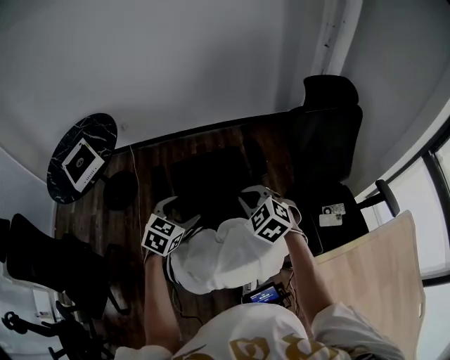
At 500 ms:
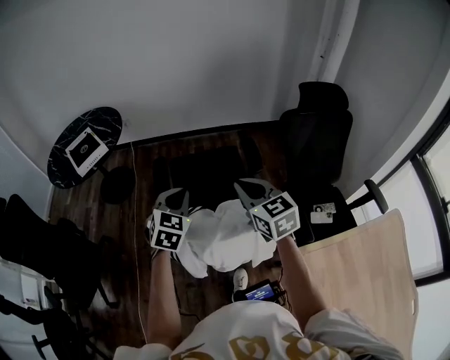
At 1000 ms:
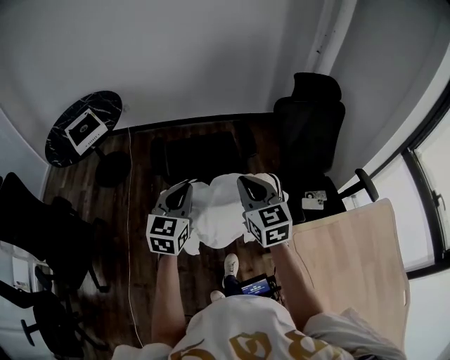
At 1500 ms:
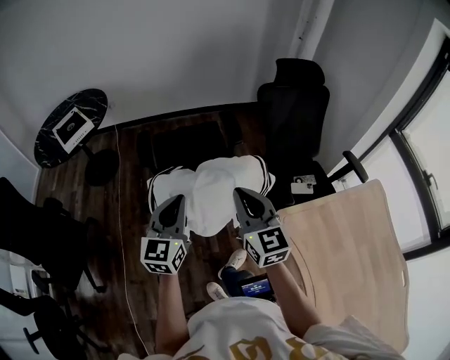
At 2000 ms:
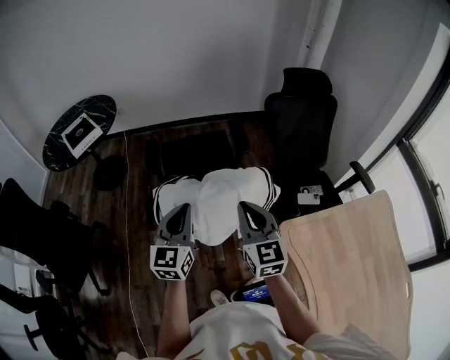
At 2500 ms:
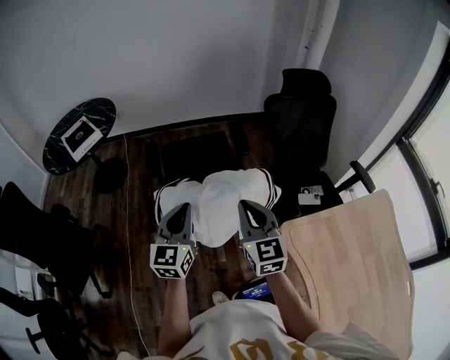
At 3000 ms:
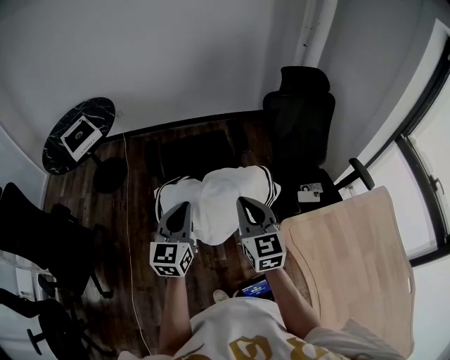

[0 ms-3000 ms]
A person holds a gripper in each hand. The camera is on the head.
0 ms to 1500 ms: The grippers both shift backward by about 25 cm. The right gripper tilts its fingers some 40 degrees upward. The left gripper angles its fingers upward, by approximately 30 degrees, and closes its fingers.
1500 ms to 3000 ms: The grippers make only small movements.

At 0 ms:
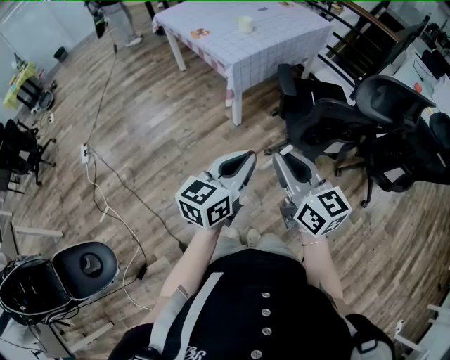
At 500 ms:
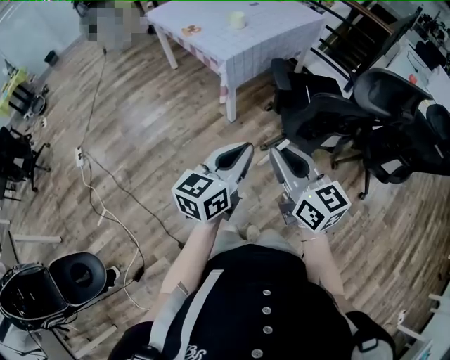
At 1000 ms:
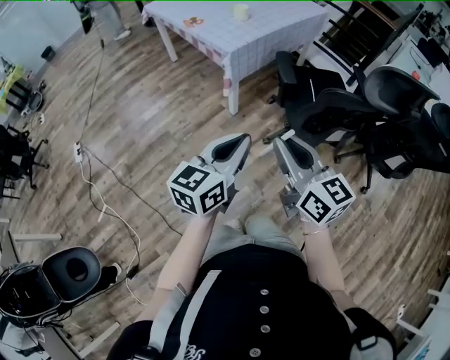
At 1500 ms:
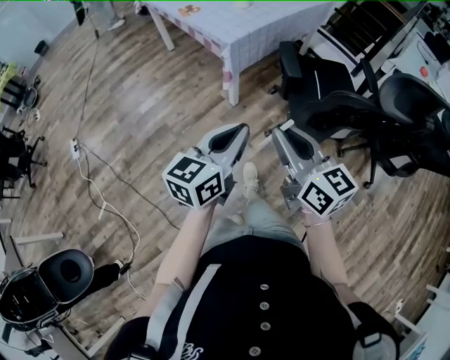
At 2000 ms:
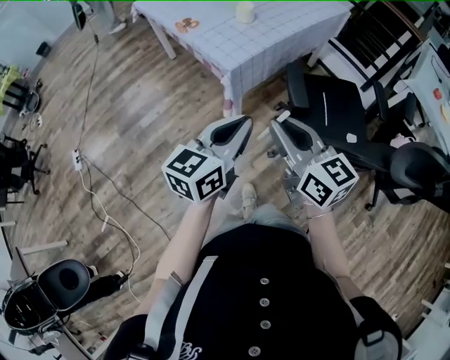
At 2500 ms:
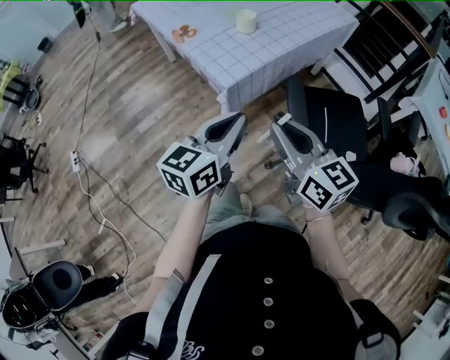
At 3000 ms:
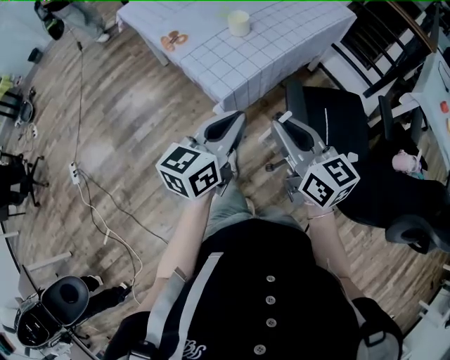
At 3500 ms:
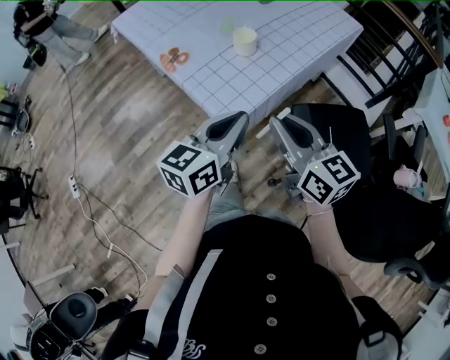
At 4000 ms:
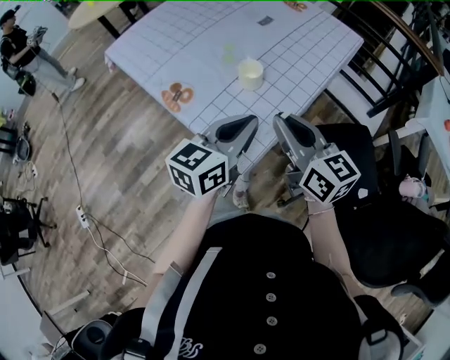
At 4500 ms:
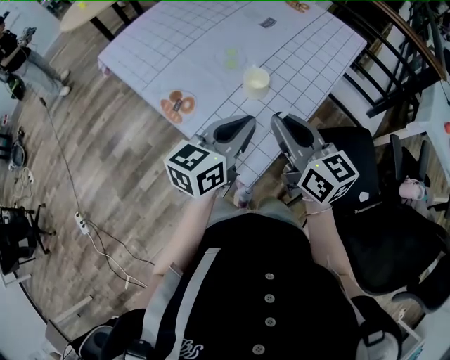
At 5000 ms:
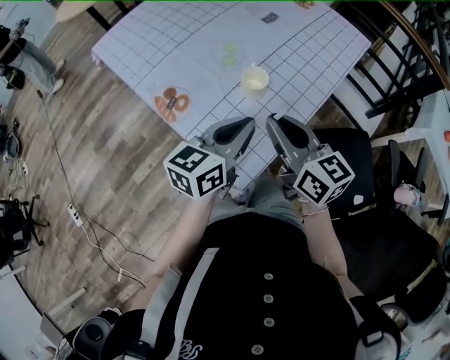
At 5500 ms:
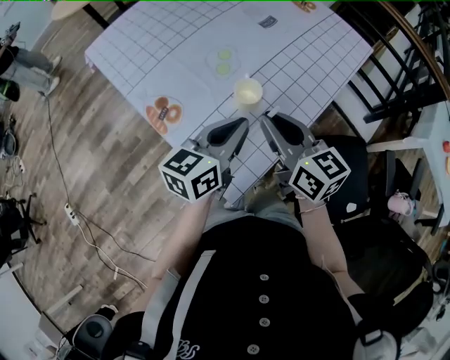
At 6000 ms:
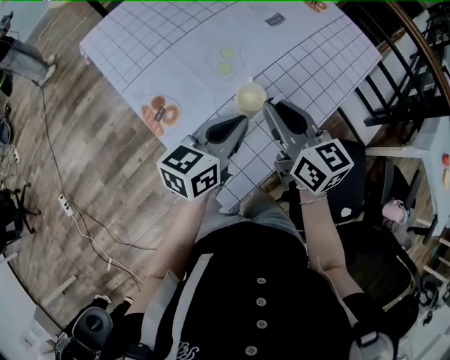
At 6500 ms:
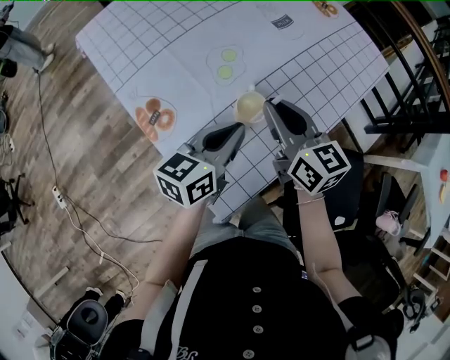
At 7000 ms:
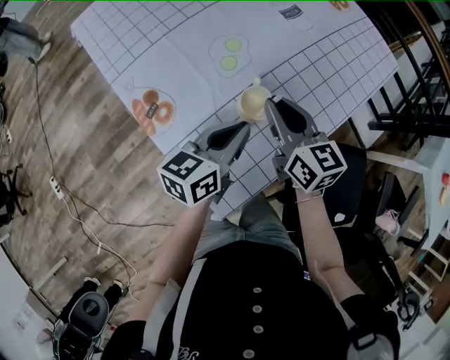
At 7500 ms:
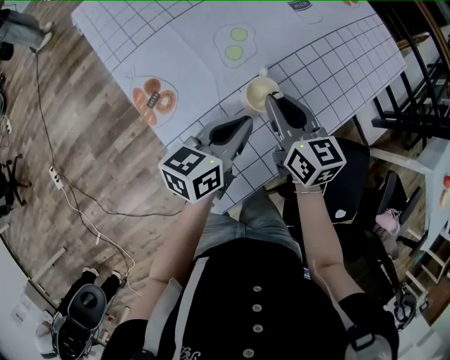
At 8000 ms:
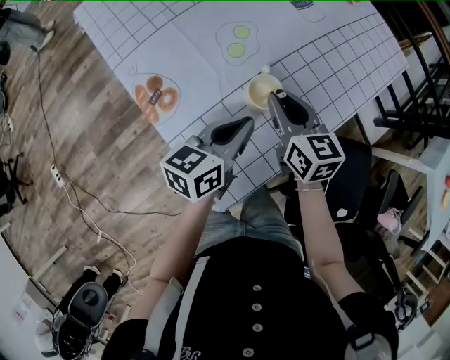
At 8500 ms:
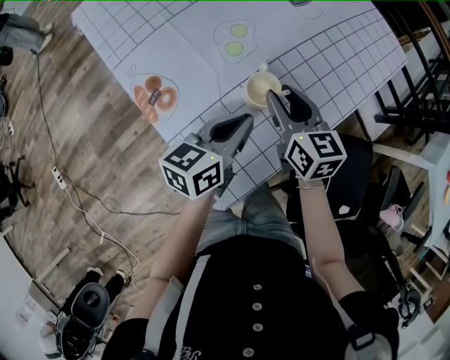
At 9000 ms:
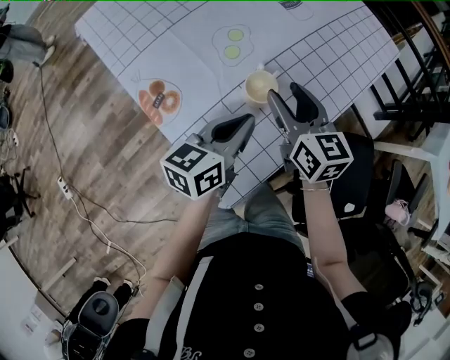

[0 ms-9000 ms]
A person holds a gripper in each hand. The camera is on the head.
0 ms to 2000 ms: The two grippers go approximately 25 cm forward.
2000 ms to 4500 ms: The pair of grippers is taken forward, some 50 cm.
4500 ms to 7000 ms: Both grippers move forward and downward, approximately 20 cm.
7000 ms to 9000 ms: The right gripper opens up.

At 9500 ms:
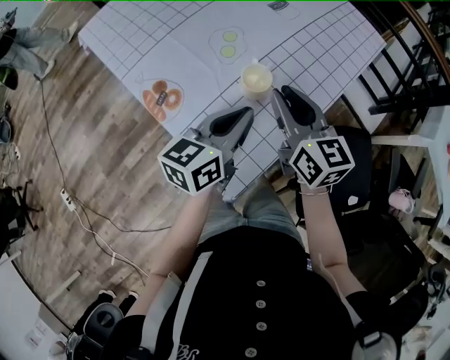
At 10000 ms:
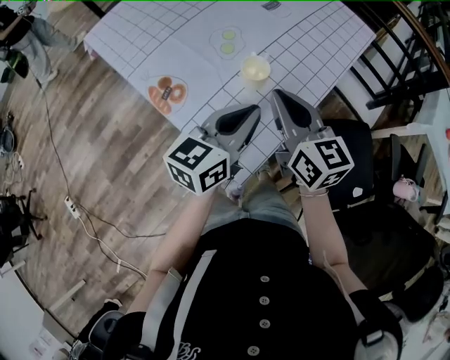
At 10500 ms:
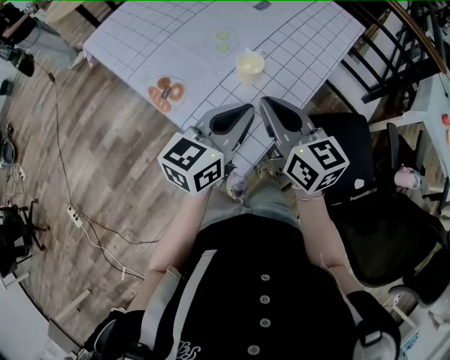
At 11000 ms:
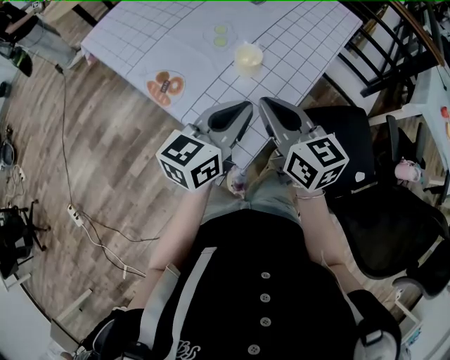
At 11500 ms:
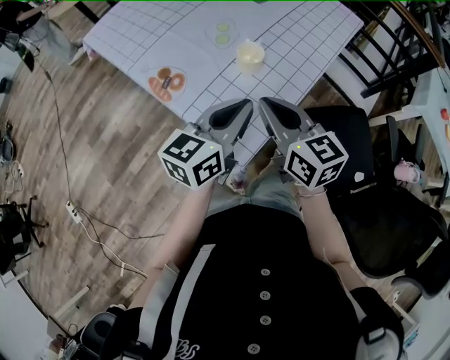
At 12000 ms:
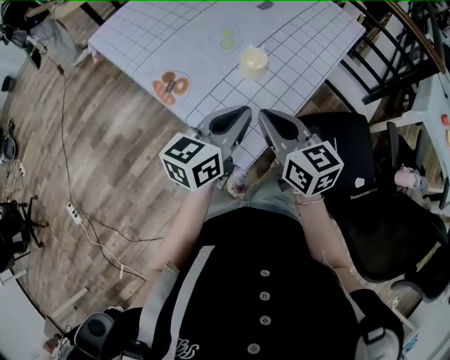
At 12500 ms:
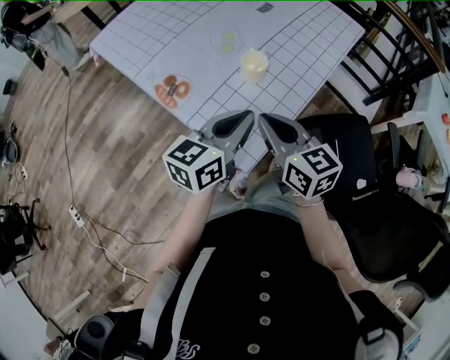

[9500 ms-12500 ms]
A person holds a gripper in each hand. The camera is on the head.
9500 ms to 11000 ms: Both grippers move backward, about 10 cm. The right gripper closes its fingers.
11000 ms to 12500 ms: The grippers move only a little.

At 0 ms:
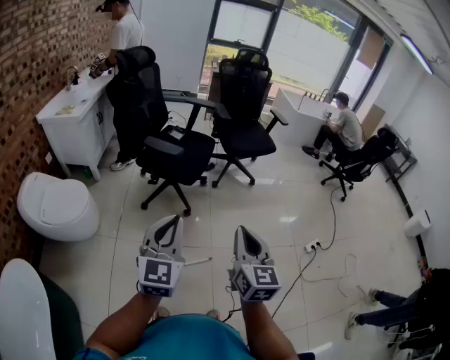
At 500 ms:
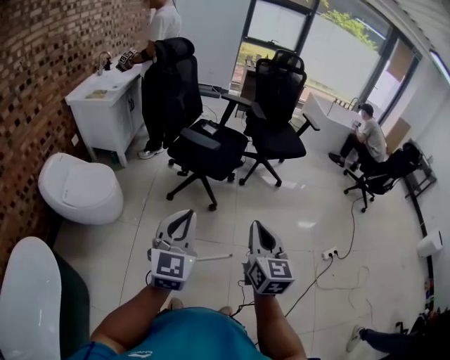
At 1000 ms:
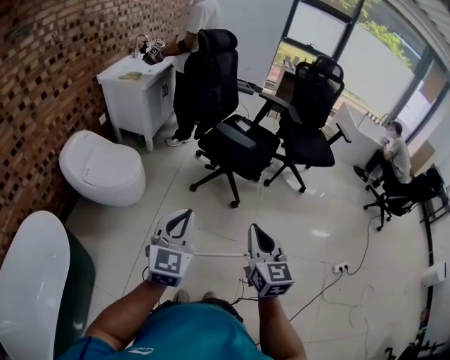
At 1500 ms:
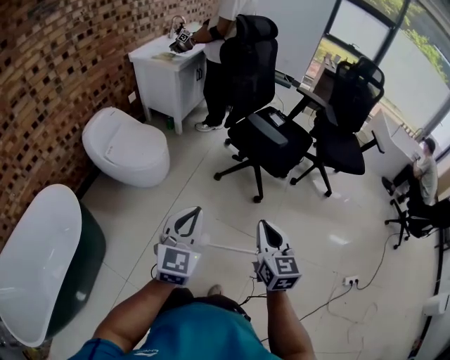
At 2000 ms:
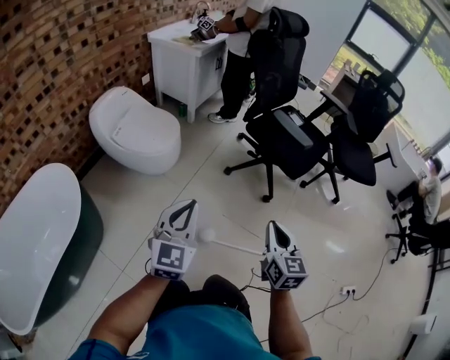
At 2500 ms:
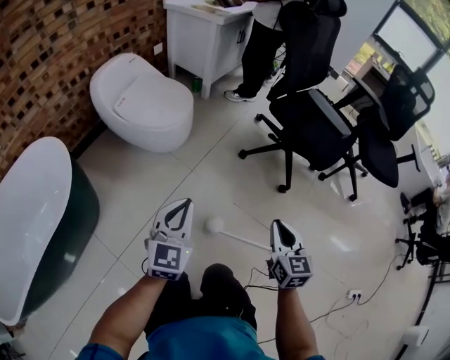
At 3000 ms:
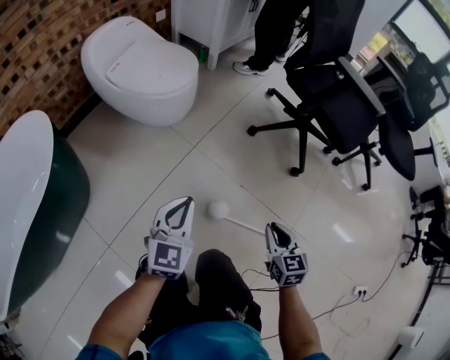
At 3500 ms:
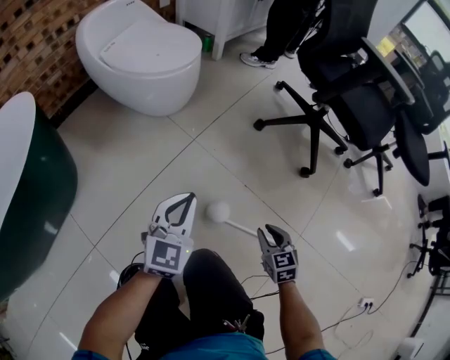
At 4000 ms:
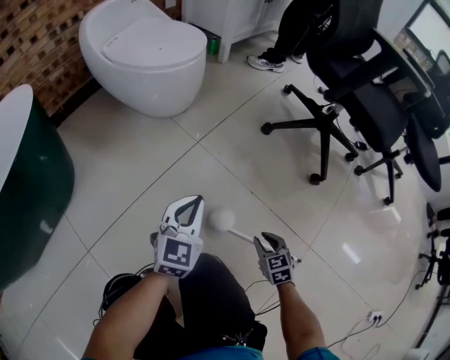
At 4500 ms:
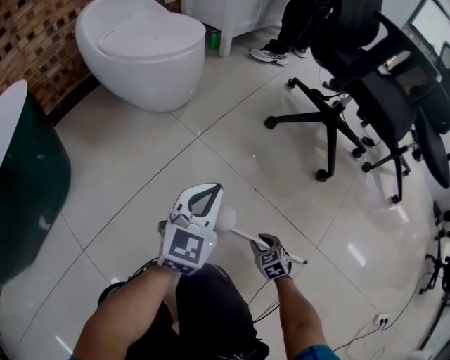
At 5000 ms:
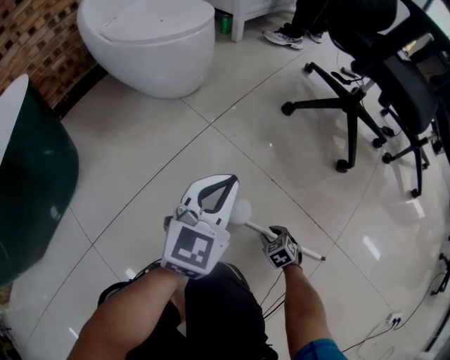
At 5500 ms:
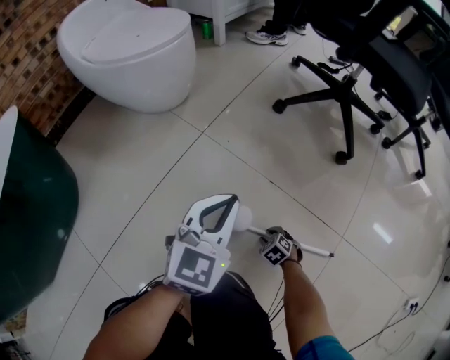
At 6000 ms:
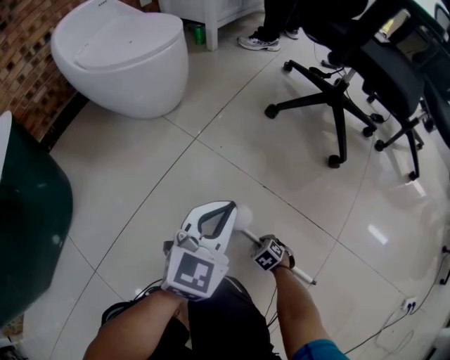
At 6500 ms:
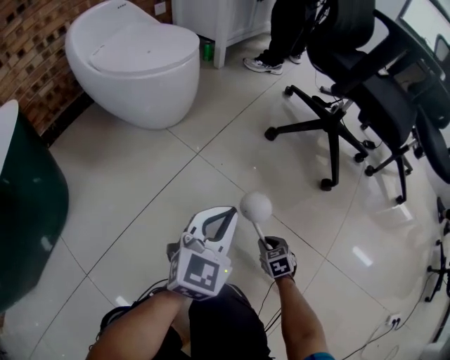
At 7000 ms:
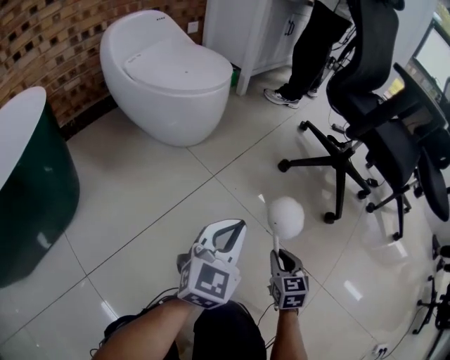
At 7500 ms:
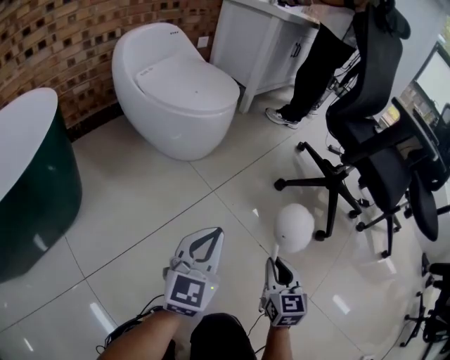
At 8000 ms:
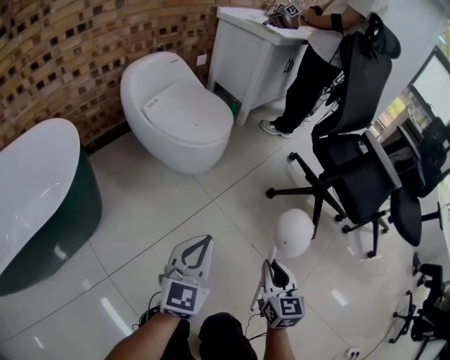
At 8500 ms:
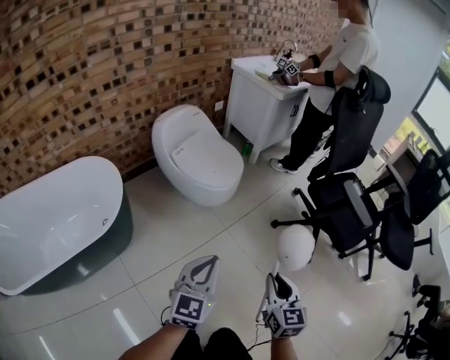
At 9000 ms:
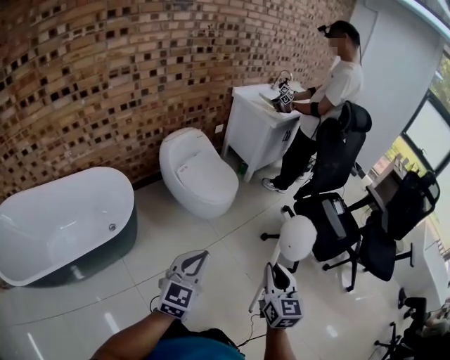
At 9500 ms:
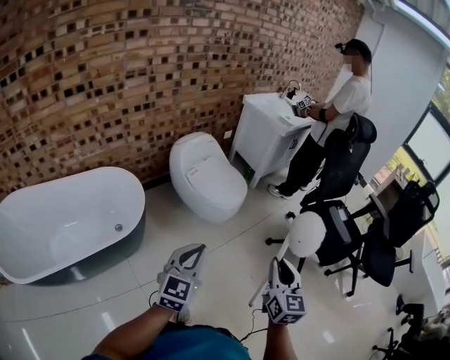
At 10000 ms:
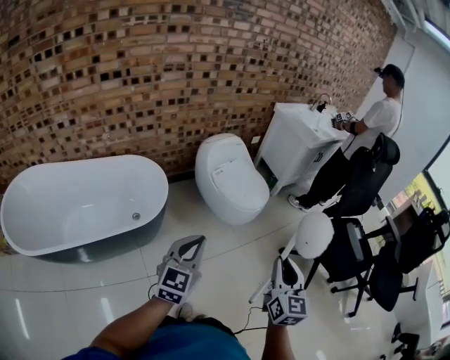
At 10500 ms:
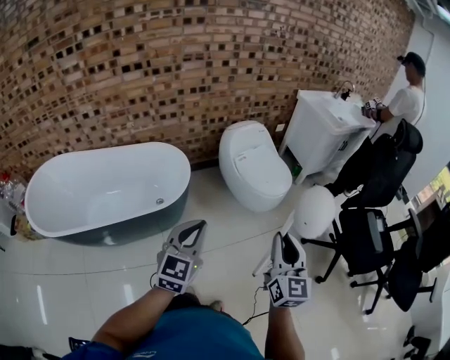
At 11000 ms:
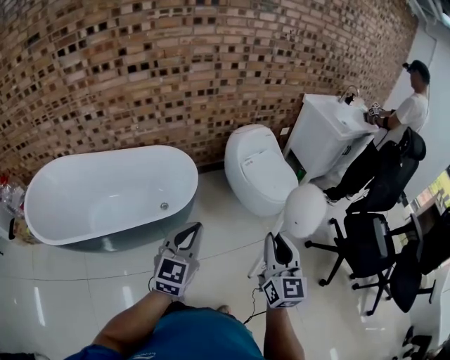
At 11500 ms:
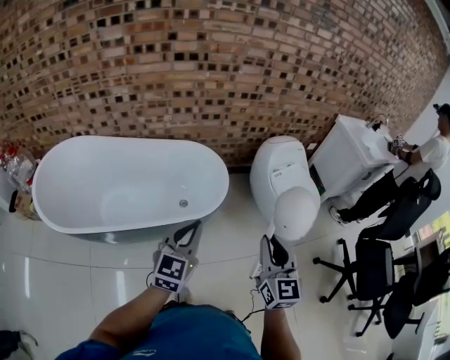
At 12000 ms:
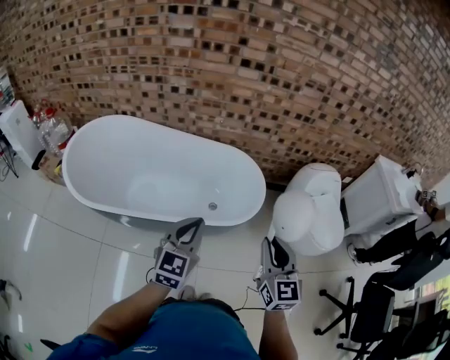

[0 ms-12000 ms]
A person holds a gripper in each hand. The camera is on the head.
0 ms to 2000 ms: The left gripper shifts by roughly 35 cm, and rotates roughly 30 degrees. The right gripper moves roughly 30 cm, and turns by about 30 degrees.
2000 ms to 4000 ms: The grippers both shift downward by roughly 60 cm. The right gripper changes its angle by approximately 40 degrees, and opens its fingers.
4000 ms to 6000 ms: The right gripper heads downward, covering about 25 cm, and turns by approximately 30 degrees. Meanwhile the left gripper ends up roughly 10 cm from where it was.
6000 ms to 8000 ms: The right gripper travels upward by roughly 60 cm, and points its fingers roughly 50 degrees further upward. The left gripper shifts approximately 30 cm upward, and swivels roughly 30 degrees.
8000 ms to 10000 ms: The right gripper is displaced upward by roughly 50 cm. The left gripper is displaced upward and to the left by approximately 40 cm.
10000 ms to 12000 ms: The two grippers travel together, roughly 40 cm. The left gripper swivels about 30 degrees; the right gripper rotates about 40 degrees.
